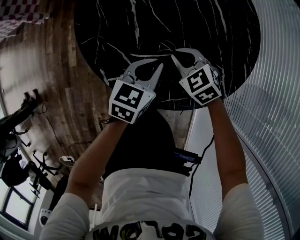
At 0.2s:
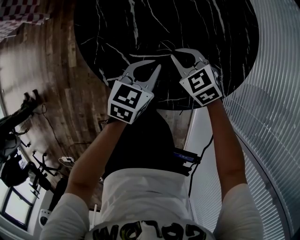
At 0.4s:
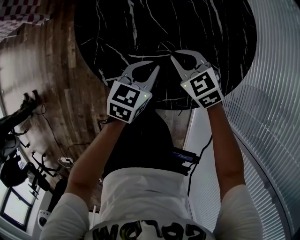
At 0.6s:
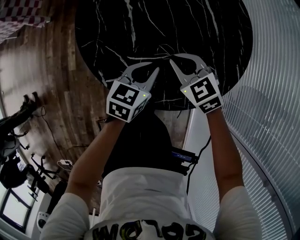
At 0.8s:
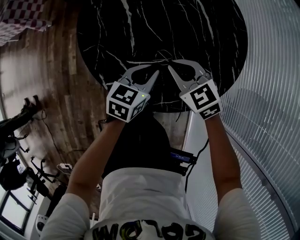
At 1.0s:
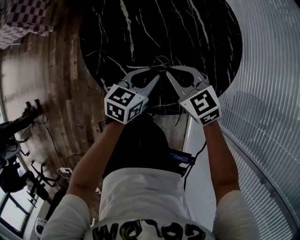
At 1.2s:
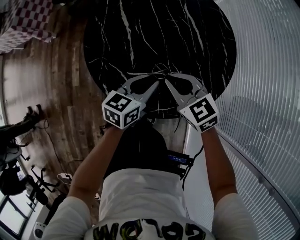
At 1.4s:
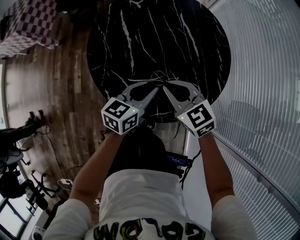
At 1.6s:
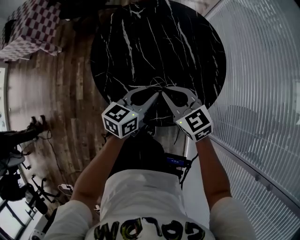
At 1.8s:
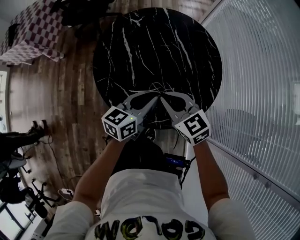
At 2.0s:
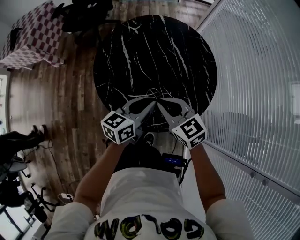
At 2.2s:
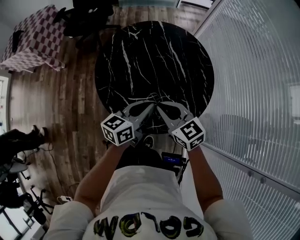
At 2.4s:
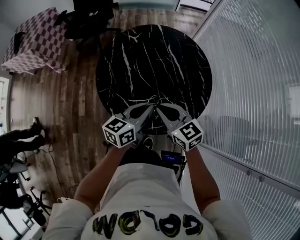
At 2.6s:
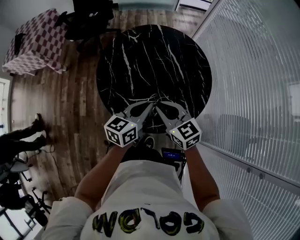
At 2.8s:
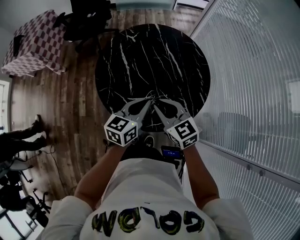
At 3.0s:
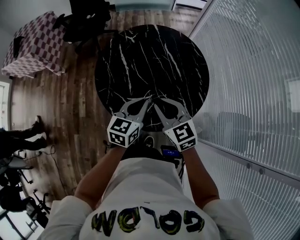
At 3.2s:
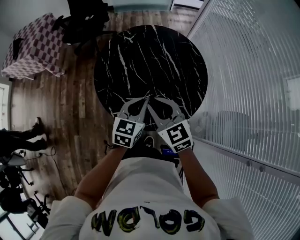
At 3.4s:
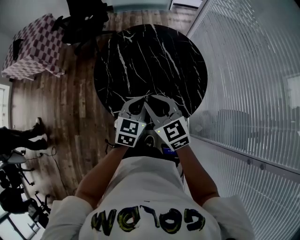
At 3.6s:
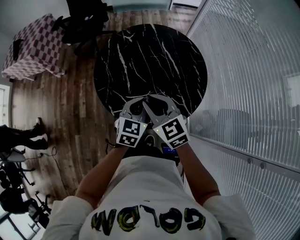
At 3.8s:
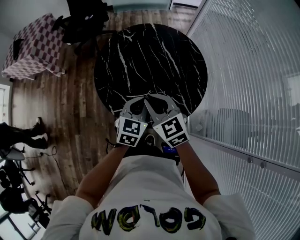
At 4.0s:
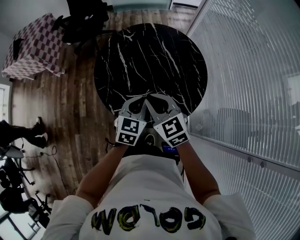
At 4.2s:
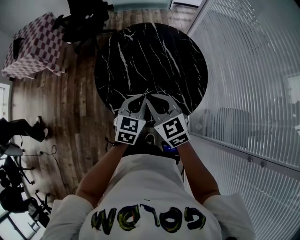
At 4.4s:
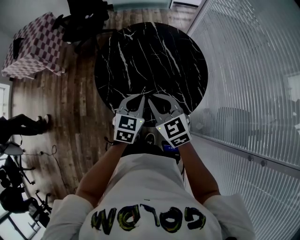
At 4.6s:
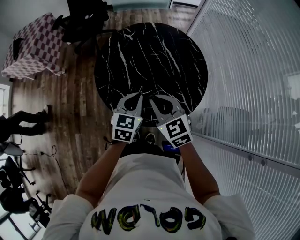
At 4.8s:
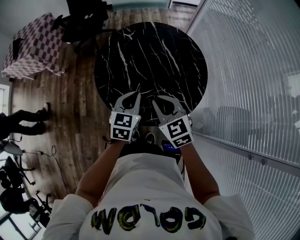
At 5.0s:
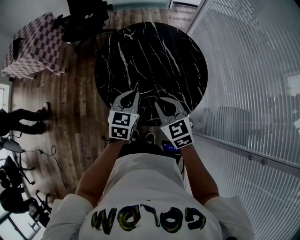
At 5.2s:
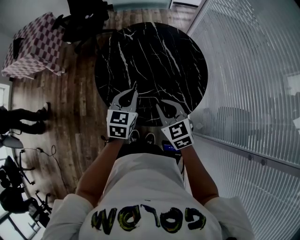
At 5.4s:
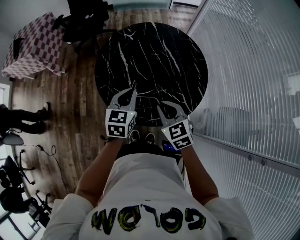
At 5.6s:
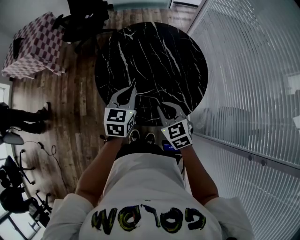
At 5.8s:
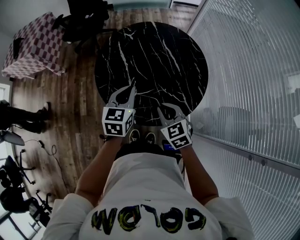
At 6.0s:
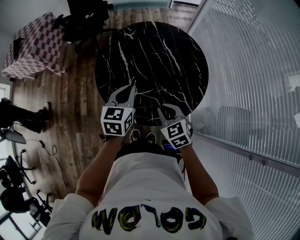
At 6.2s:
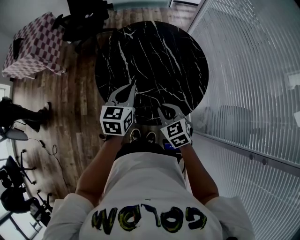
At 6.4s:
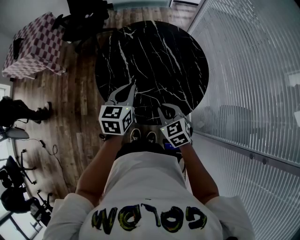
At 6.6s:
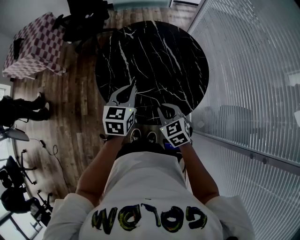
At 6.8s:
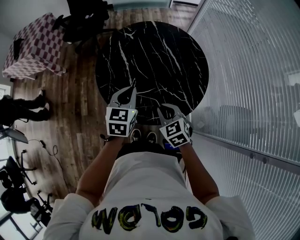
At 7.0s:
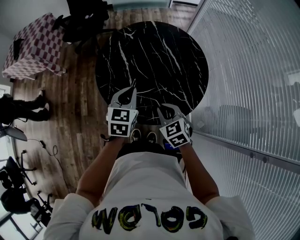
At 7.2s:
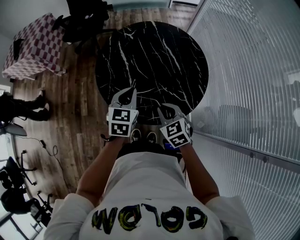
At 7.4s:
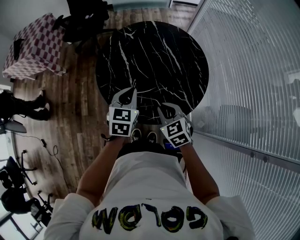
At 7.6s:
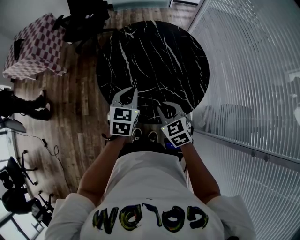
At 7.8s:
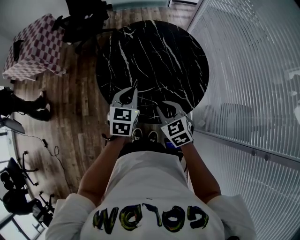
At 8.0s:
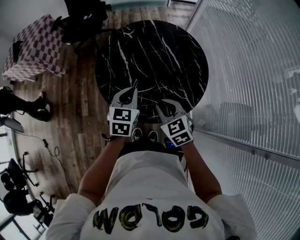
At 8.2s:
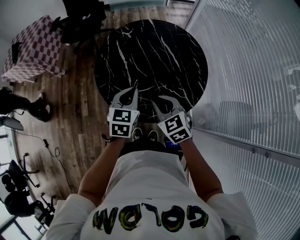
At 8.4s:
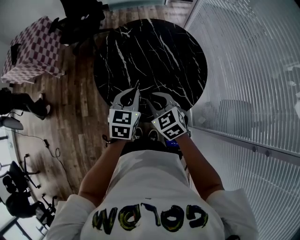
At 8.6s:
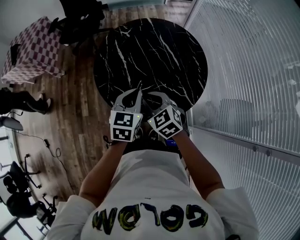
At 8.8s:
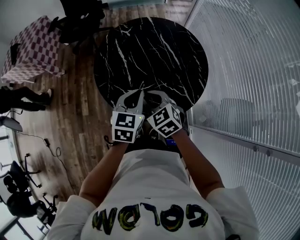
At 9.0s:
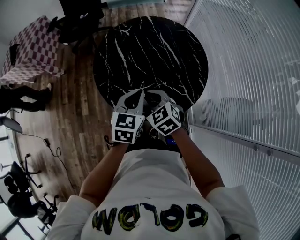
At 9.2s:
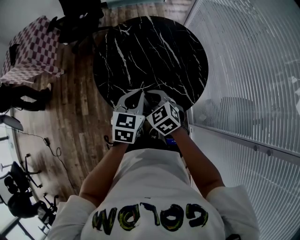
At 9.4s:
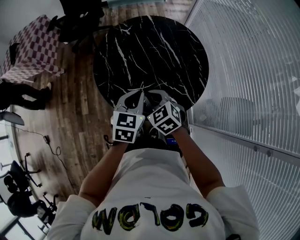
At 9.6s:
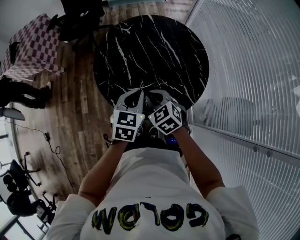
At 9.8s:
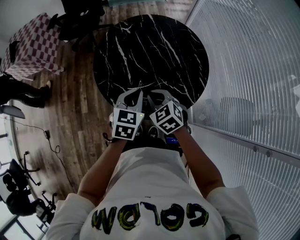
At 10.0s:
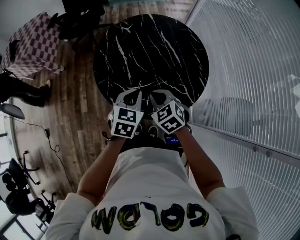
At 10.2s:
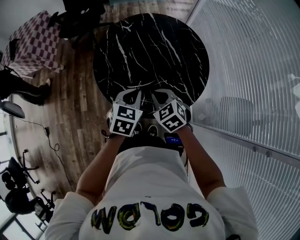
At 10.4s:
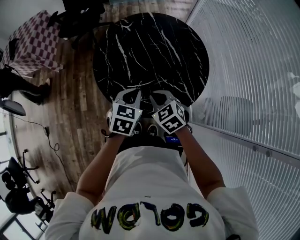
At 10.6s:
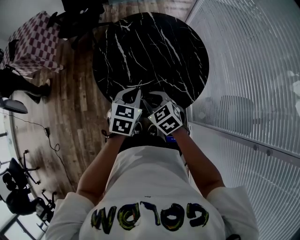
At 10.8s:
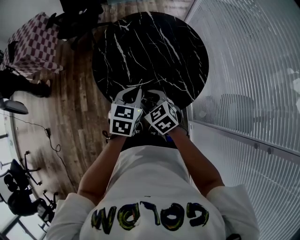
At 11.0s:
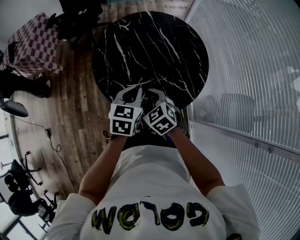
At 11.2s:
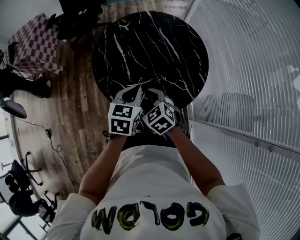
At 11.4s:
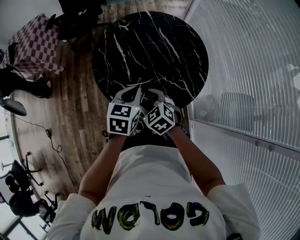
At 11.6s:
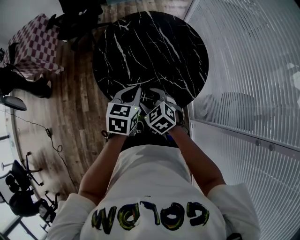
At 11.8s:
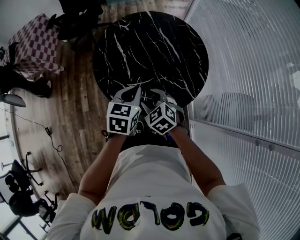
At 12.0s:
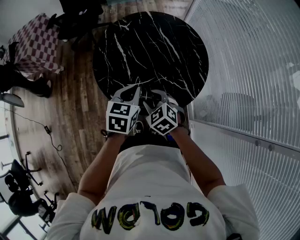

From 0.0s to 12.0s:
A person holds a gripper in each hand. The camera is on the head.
From 0.0s to 1.6s: Both grippers travel together upward, roughly 15 cm. The right gripper changes its angle by roughly 20 degrees.
From 1.6s to 3.0s: Both grippers travel together upward, roughly 10 cm. The left gripper closes its fingers.
From 3.0s to 4.4s: The grippers move only a little.
From 4.4s to 6.0s: The right gripper moves downward, some 10 cm; the left gripper ends up about 5 cm from where it was.
From 6.0s to 7.6s: The grippers stay close to where they were, moving slightly.
From 7.6s to 9.0s: The right gripper goes some 5 cm to the left.
From 9.0s to 10.4s: The grippers move only a little.
From 10.4s to 12.0s: The right gripper opens.

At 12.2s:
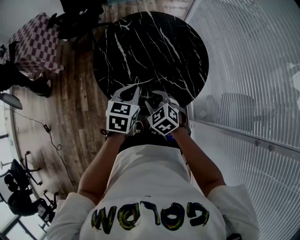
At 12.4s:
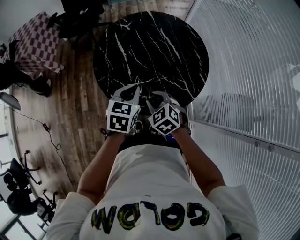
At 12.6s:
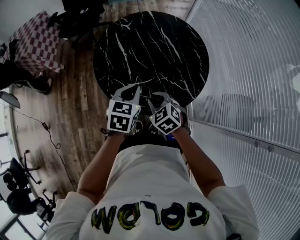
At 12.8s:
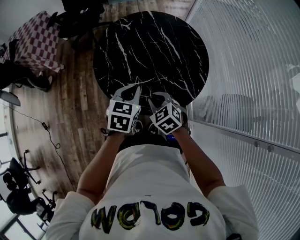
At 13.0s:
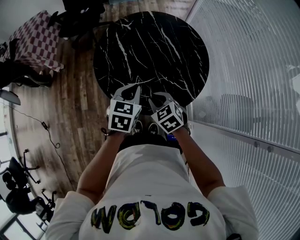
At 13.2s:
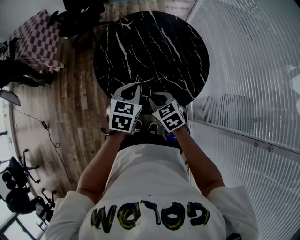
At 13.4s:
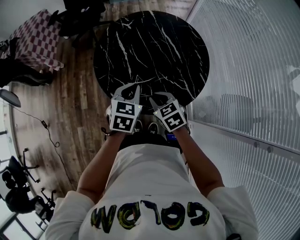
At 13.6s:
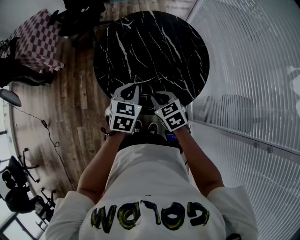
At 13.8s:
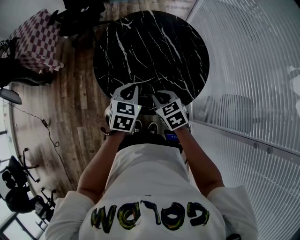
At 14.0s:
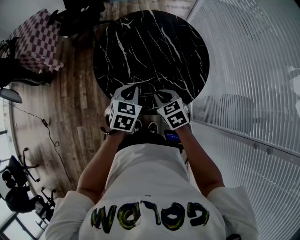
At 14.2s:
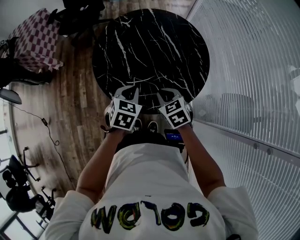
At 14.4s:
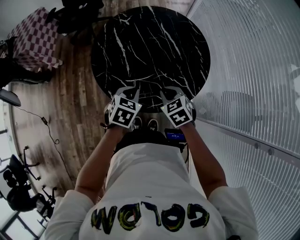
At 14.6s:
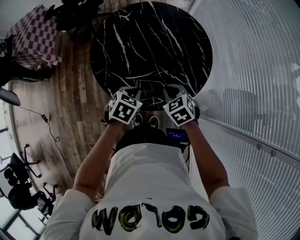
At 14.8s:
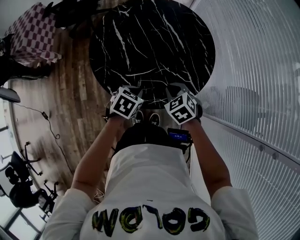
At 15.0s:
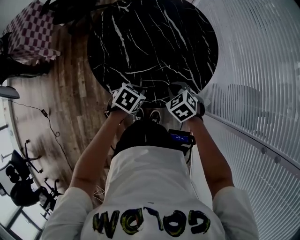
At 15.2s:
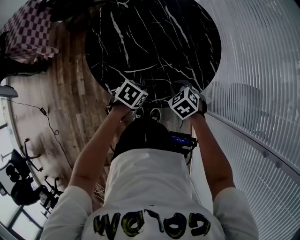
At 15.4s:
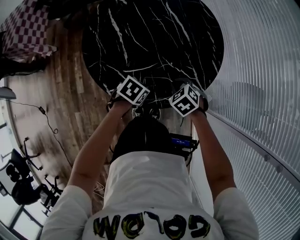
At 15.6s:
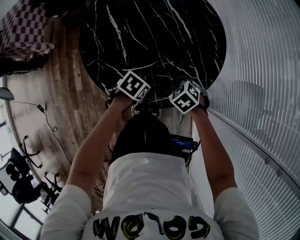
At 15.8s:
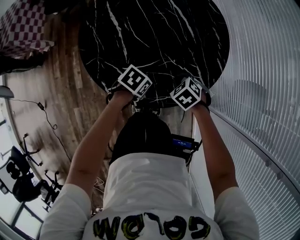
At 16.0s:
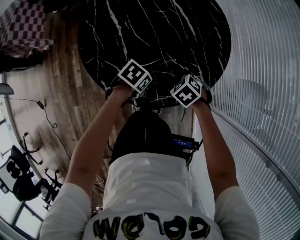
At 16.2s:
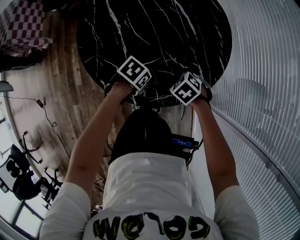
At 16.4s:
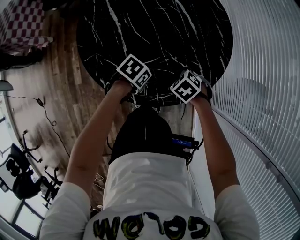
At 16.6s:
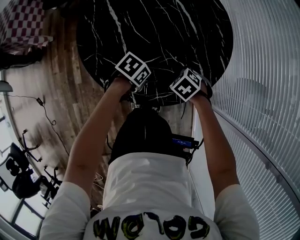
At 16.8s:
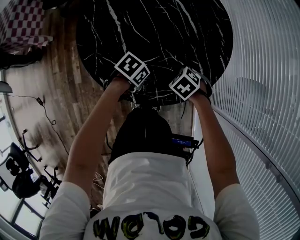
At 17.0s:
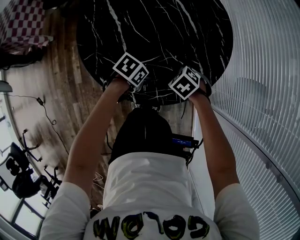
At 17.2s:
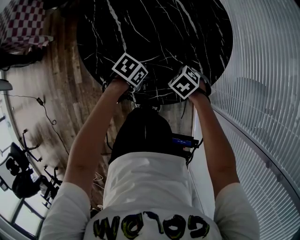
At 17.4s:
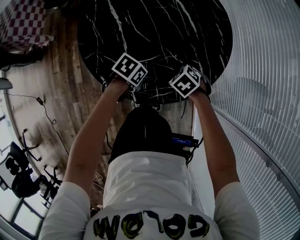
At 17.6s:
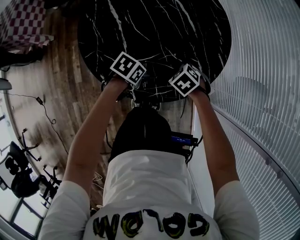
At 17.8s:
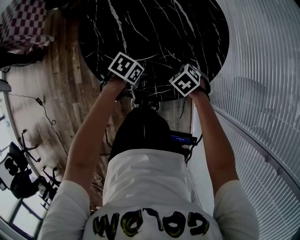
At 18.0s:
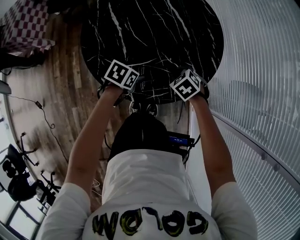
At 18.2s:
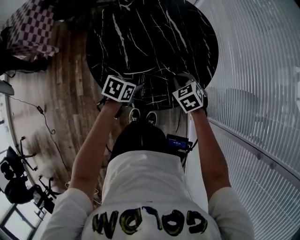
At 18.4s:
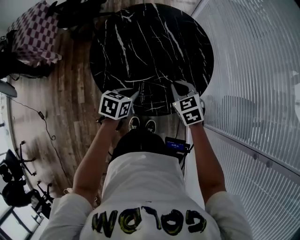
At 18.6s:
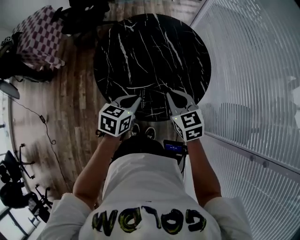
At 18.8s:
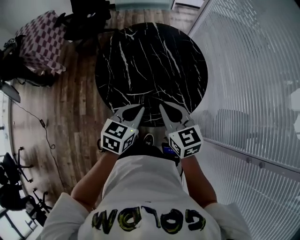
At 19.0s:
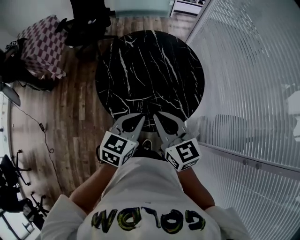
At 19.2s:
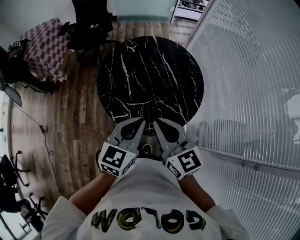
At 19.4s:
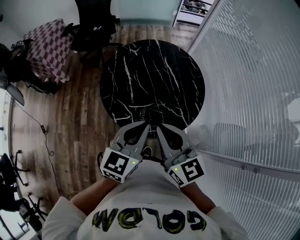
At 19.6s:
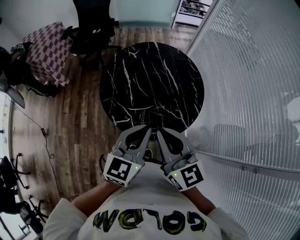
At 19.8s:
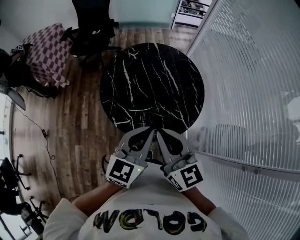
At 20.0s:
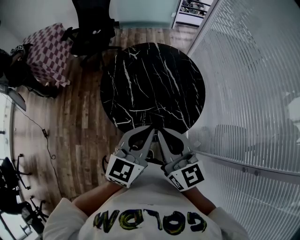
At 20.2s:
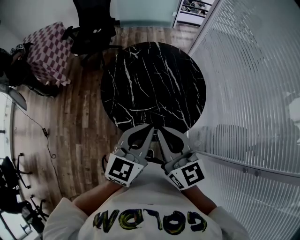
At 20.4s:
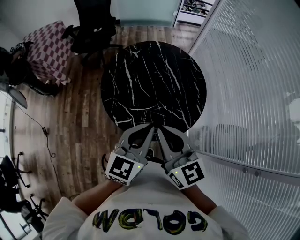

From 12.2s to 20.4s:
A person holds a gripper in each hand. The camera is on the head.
From 12.2s to 13.8s: The right gripper closes.
From 13.8s to 15.4s: The two grippers go some 20 cm downward. The left gripper rotates roughly 50 degrees. Meanwhile the right gripper changes its angle by roughly 30 degrees.
From 15.4s to 17.2s: The right gripper shifts about 5 cm downward. The left gripper opens its fingers.
From 17.2s to 18.8s: The two grippers go approximately 30 cm upward. The left gripper rotates roughly 50 degrees, and closes. Meanwhile the right gripper angles its fingers upward, by about 50 degrees.
From 18.8s to 20.4s: The two grippers go some 15 cm upward. The left gripper rotates about 20 degrees.

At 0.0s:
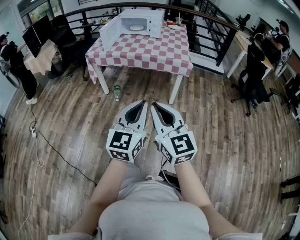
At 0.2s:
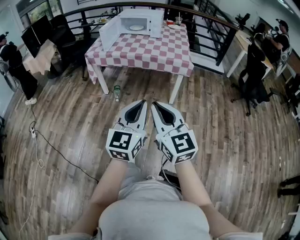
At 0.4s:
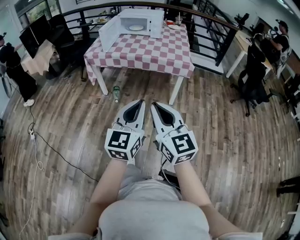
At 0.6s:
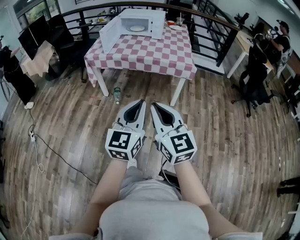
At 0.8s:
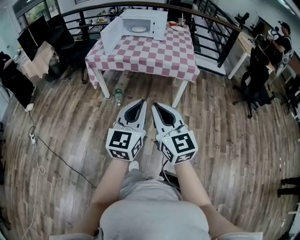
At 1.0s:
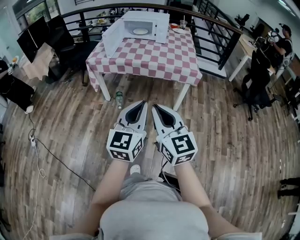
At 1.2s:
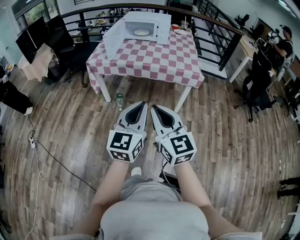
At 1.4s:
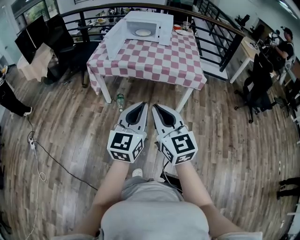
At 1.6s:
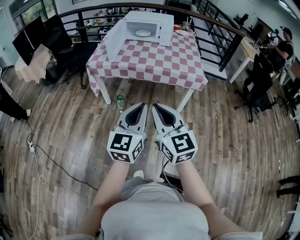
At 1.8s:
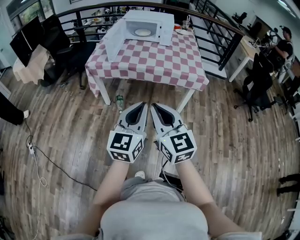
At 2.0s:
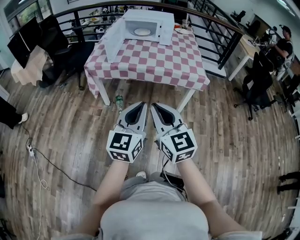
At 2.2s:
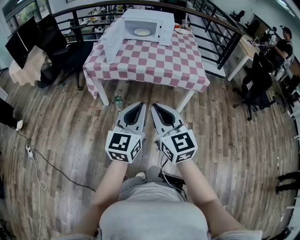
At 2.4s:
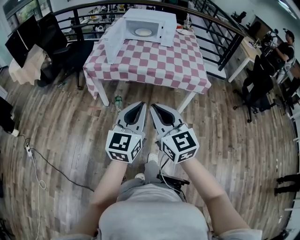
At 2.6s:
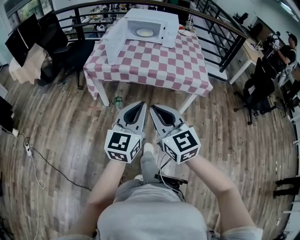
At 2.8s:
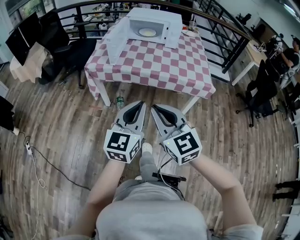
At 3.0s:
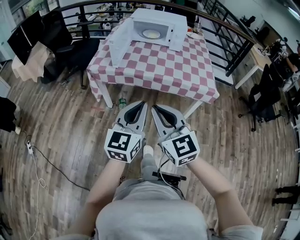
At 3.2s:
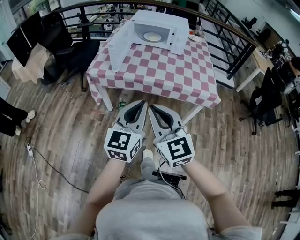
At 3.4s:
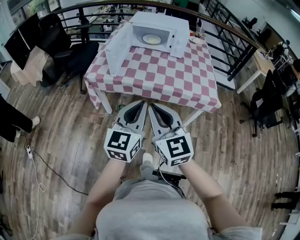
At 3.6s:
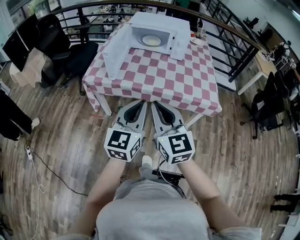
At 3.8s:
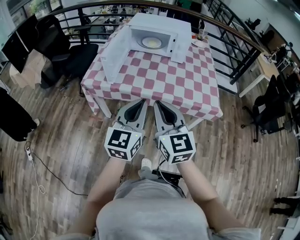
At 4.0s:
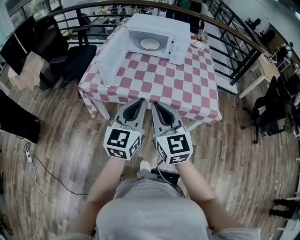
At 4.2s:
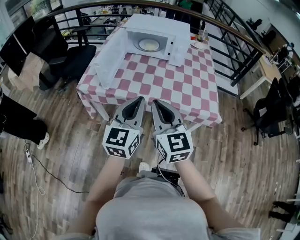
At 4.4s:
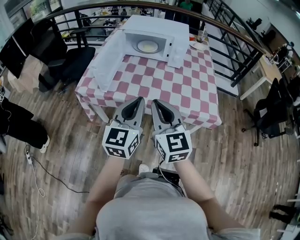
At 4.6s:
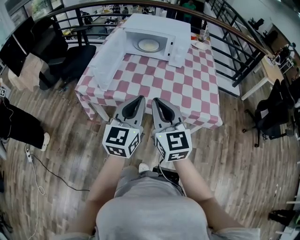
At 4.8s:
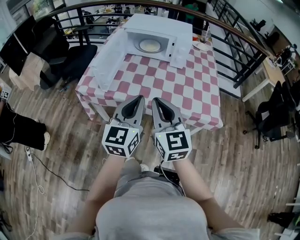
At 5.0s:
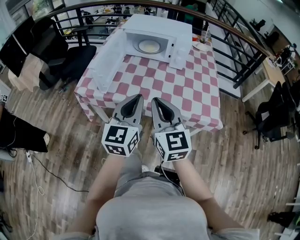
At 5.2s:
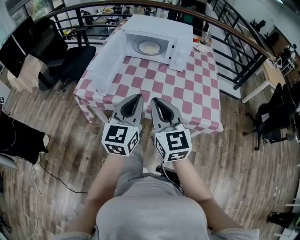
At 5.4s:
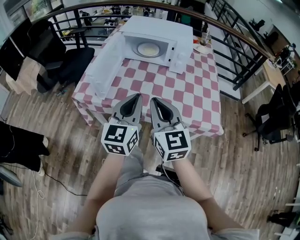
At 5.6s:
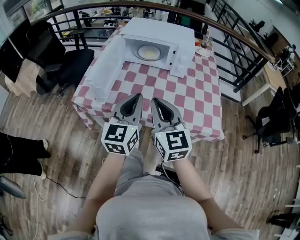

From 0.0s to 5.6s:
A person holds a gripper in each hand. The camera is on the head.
From 0.0s to 1.4s: Both grippers move forward and to the left, roughly 20 cm.
From 1.4s to 2.8s: The grippers both shift forward and to the left by about 15 cm.
From 2.8s to 4.2s: Both grippers move forward, some 25 cm.
From 4.2s to 5.6s: Both grippers move forward, about 10 cm.
